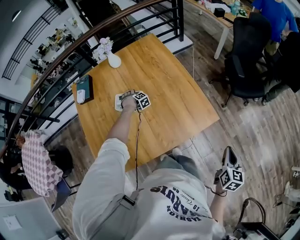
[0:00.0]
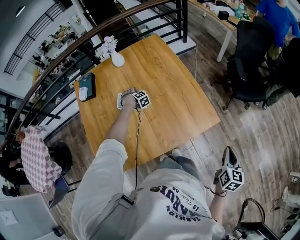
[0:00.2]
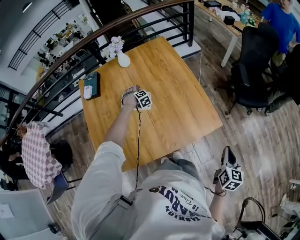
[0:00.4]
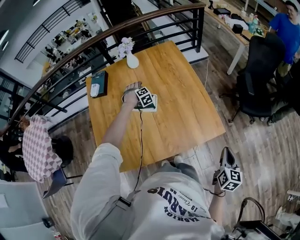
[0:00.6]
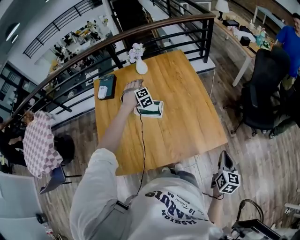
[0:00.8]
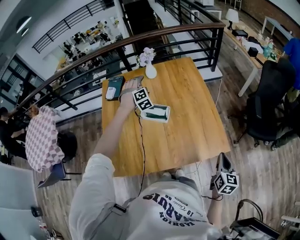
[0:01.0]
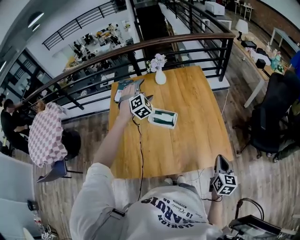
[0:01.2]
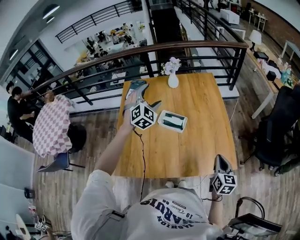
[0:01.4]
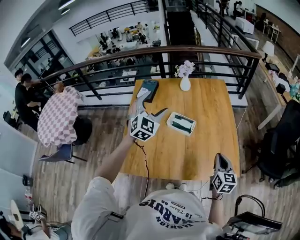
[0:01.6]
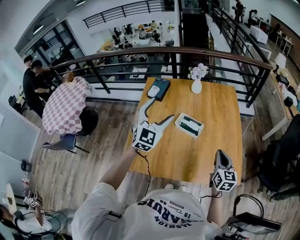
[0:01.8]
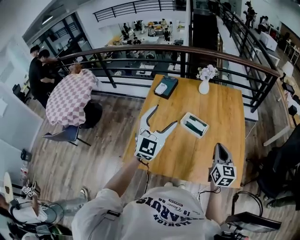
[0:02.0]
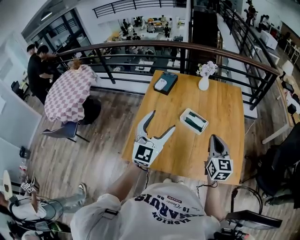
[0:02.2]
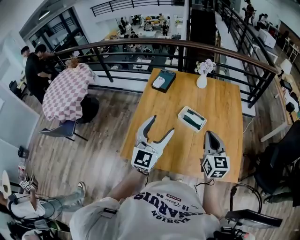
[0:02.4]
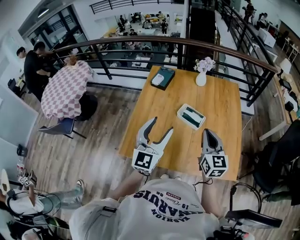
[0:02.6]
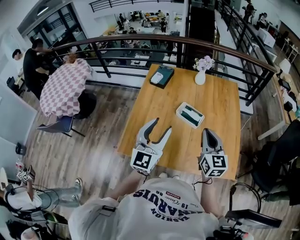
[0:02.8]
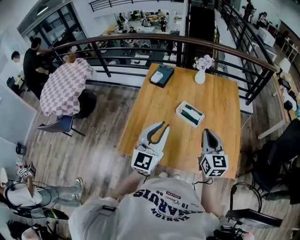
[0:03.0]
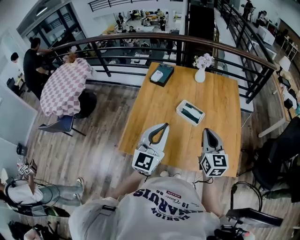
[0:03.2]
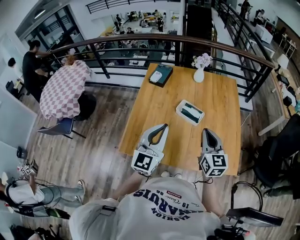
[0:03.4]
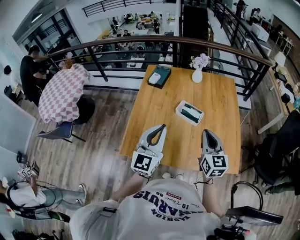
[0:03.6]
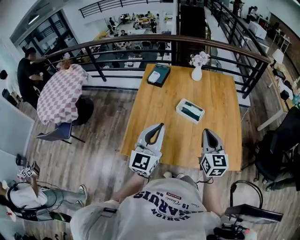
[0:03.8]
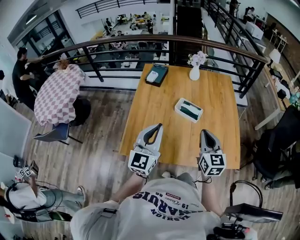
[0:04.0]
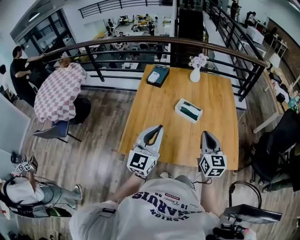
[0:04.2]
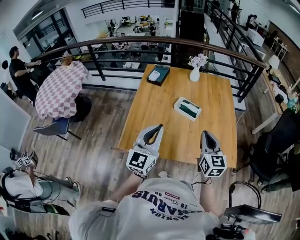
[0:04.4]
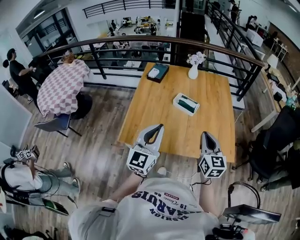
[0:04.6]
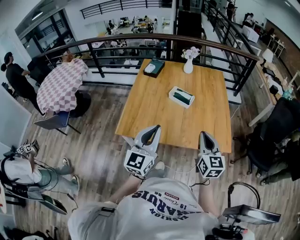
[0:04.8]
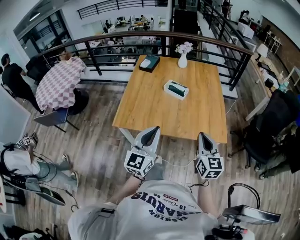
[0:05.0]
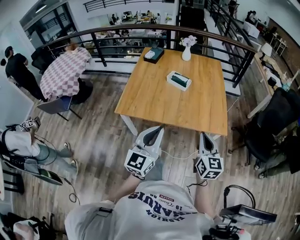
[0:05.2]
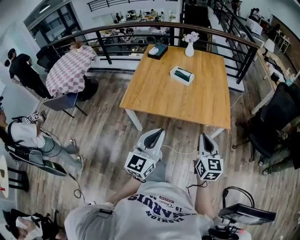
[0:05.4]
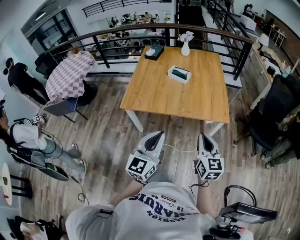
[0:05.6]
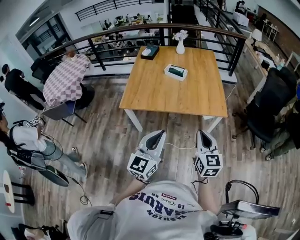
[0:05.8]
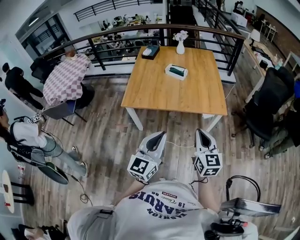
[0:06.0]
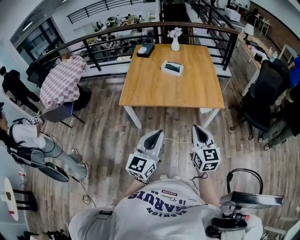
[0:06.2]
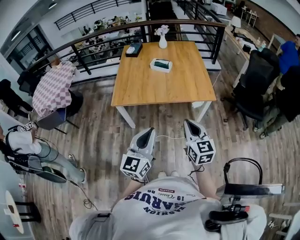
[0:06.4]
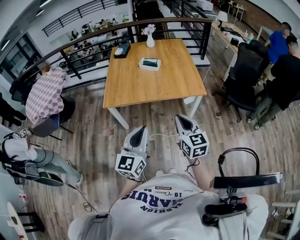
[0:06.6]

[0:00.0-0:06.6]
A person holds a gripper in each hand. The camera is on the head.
0:00.0 to 0:01.6: The left gripper shifts approximately 50 cm upward, and tilts its fingers approximately 50 degrees upward; the right gripper is displaced forward and to the left by roughly 30 cm, and swivels roughly 40 degrees.
0:01.6 to 0:03.2: The left gripper is displaced backward by approximately 20 cm, swivels roughly 40 degrees, and closes, while the right gripper shifts about 15 cm to the left and upward, and changes its angle by approximately 20 degrees.
0:03.2 to 0:05.0: The two grippers go some 30 cm backward.
0:05.0 to 0:06.6: Both grippers travel together backward, roughly 30 cm.

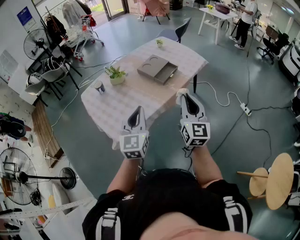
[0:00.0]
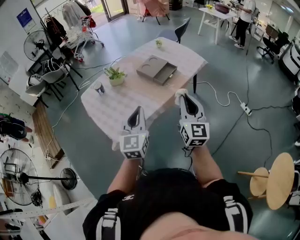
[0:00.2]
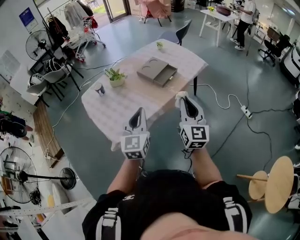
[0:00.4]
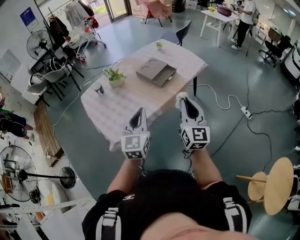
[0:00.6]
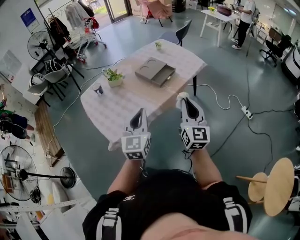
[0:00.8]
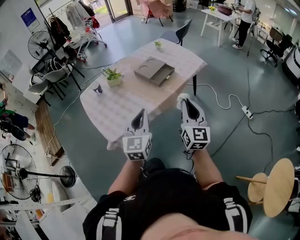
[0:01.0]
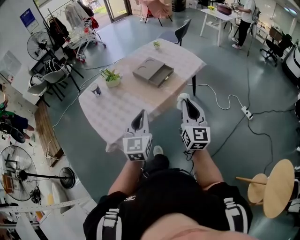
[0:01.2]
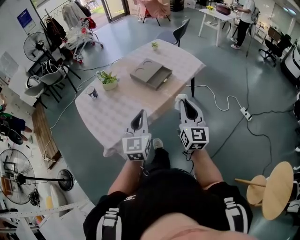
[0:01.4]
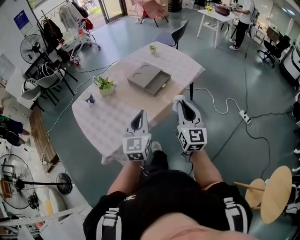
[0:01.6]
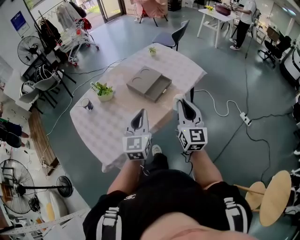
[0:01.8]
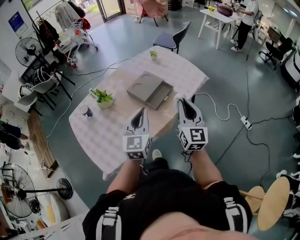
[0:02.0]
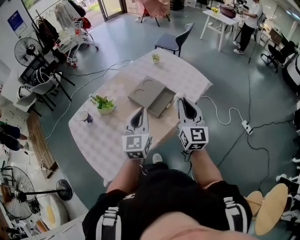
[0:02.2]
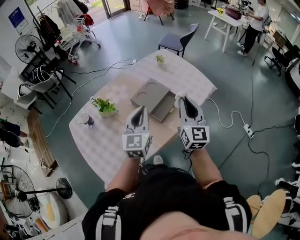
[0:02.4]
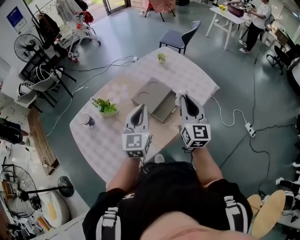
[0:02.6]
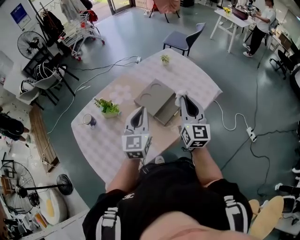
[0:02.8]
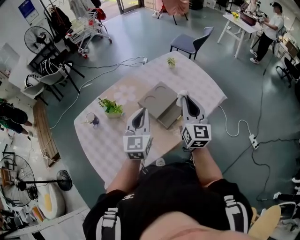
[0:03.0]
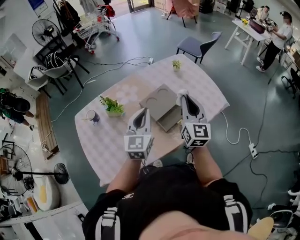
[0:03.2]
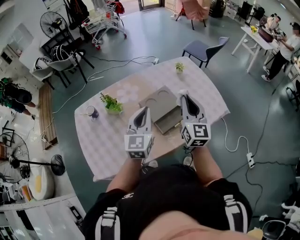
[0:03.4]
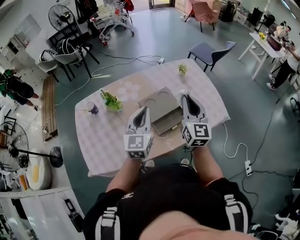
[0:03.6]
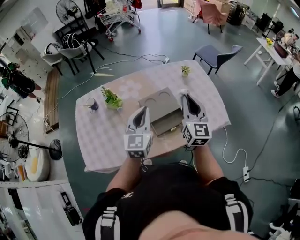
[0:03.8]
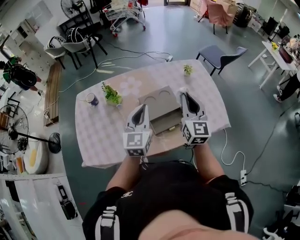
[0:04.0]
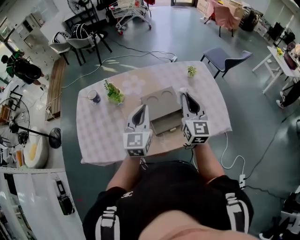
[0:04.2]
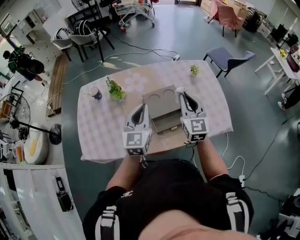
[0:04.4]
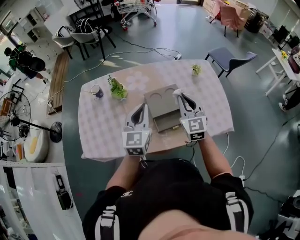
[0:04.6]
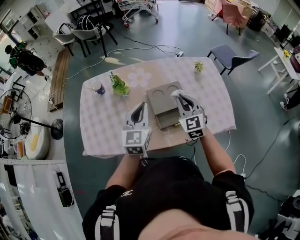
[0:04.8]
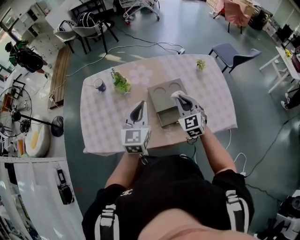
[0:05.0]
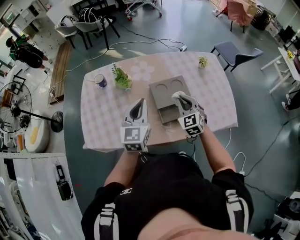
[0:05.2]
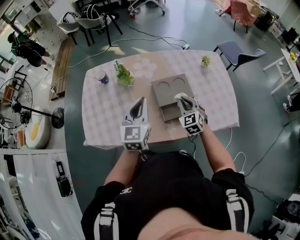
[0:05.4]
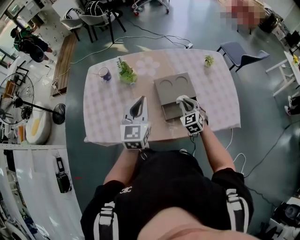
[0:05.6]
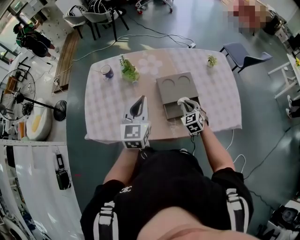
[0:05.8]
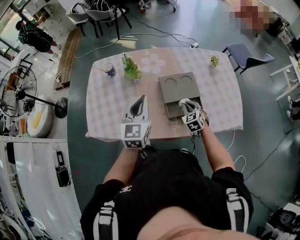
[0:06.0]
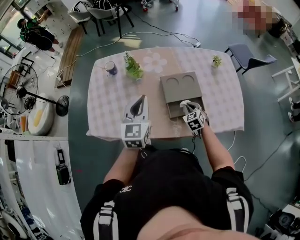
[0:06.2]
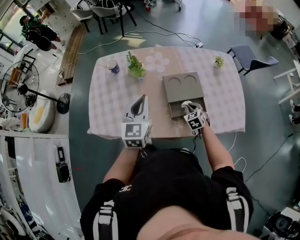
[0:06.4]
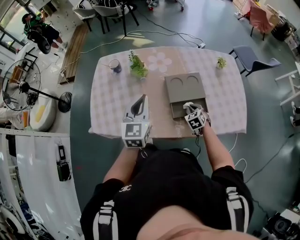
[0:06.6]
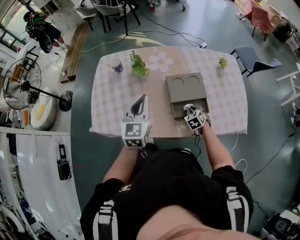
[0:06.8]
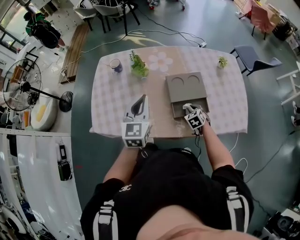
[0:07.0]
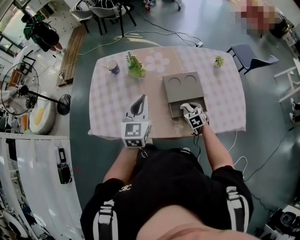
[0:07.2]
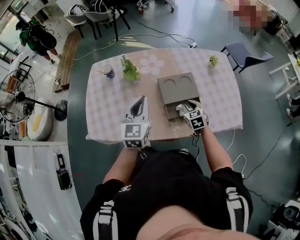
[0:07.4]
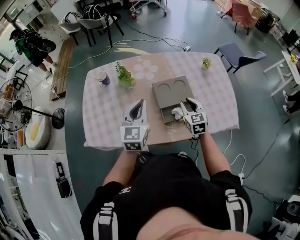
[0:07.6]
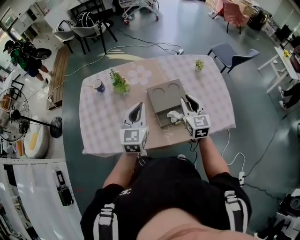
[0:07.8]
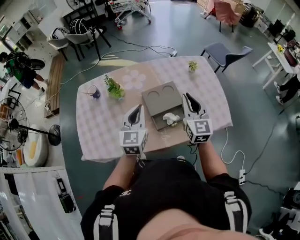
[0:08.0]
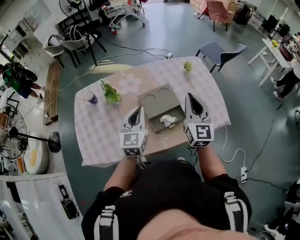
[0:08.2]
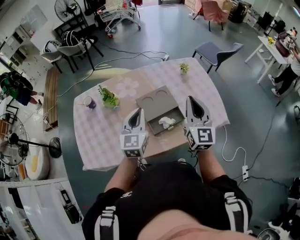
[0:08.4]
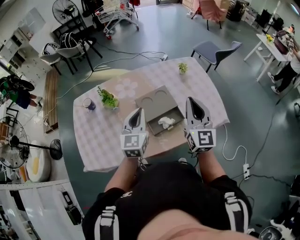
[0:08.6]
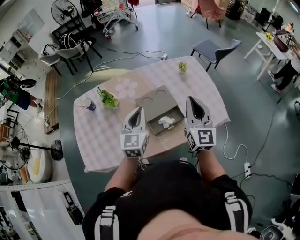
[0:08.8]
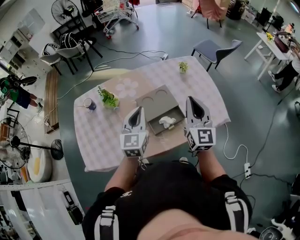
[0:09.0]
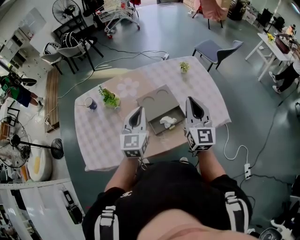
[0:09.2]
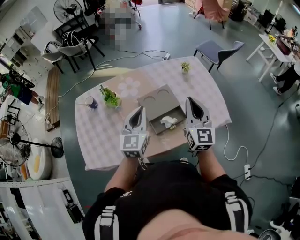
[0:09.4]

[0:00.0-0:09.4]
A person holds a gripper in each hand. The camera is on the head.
0:00.0 to 0:01.6: The two grippers go some 15 cm forward and to the right.
0:01.6 to 0:03.2: Both grippers travel together forward, some 35 cm.
0:03.2 to 0:04.8: The right gripper moves downward, some 10 cm, and swivels roughly 50 degrees. Meanwhile the left gripper rotates roughly 20 degrees.
0:04.8 to 0:06.2: The right gripper moves downward, some 20 cm, and tips its fingers downward by roughly 30 degrees. Meanwhile the left gripper travels to the left by approximately 5 cm.
0:06.2 to 0:07.8: The left gripper ends up roughly 5 cm from where it was; the right gripper heads upward, covering some 20 cm, and angles its fingers upward, by approximately 30 degrees.
0:07.8 to 0:09.4: The left gripper goes some 5 cm to the right, while the right gripper travels upward and to the right by some 10 cm, and changes its angle by approximately 20 degrees.

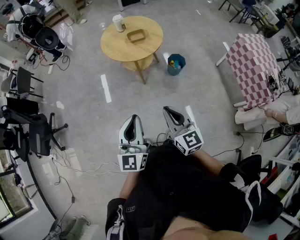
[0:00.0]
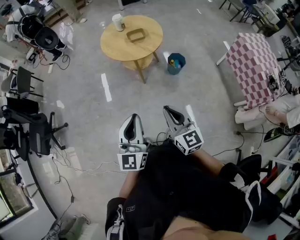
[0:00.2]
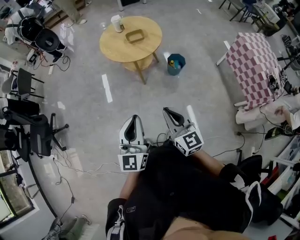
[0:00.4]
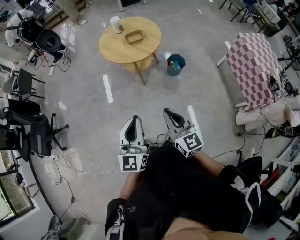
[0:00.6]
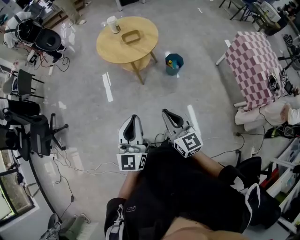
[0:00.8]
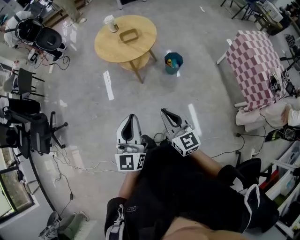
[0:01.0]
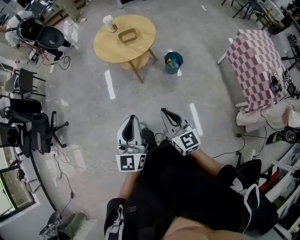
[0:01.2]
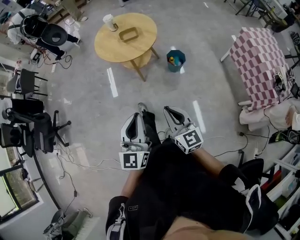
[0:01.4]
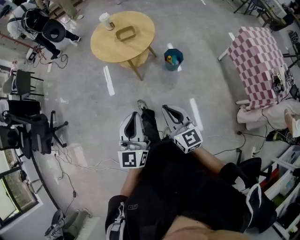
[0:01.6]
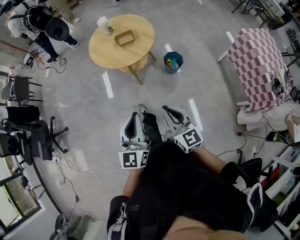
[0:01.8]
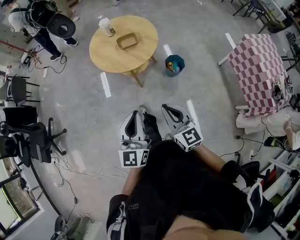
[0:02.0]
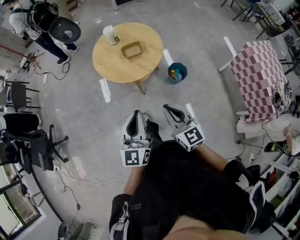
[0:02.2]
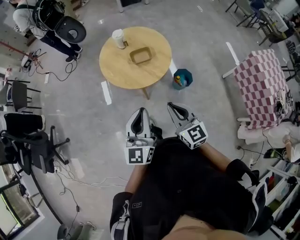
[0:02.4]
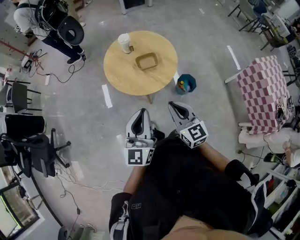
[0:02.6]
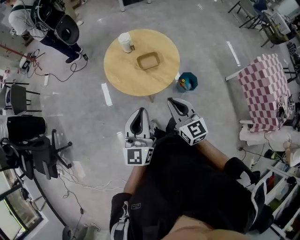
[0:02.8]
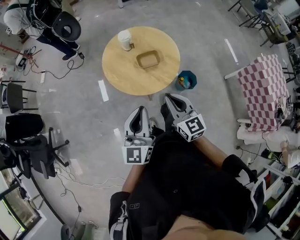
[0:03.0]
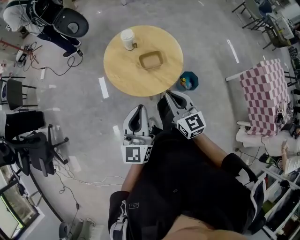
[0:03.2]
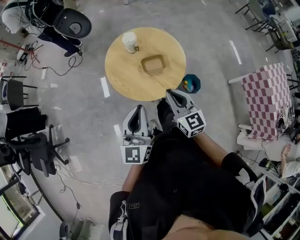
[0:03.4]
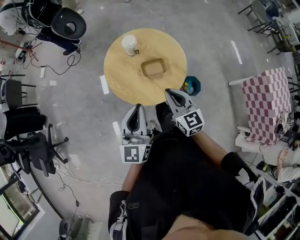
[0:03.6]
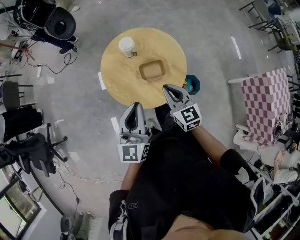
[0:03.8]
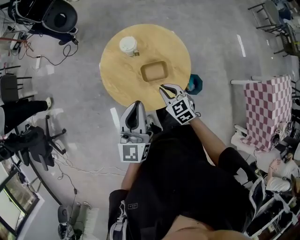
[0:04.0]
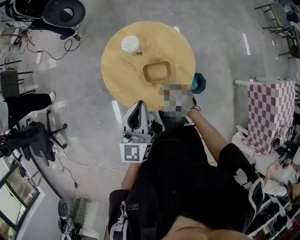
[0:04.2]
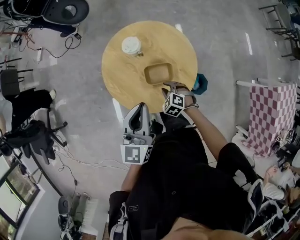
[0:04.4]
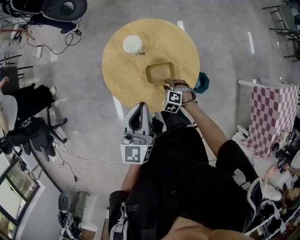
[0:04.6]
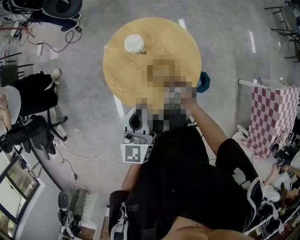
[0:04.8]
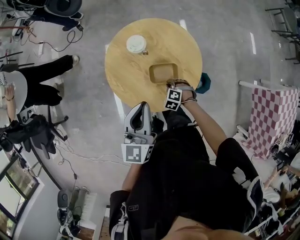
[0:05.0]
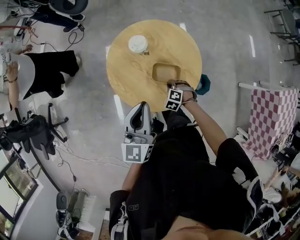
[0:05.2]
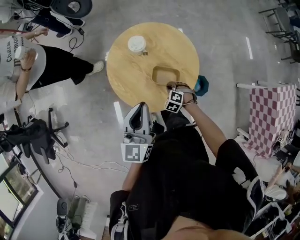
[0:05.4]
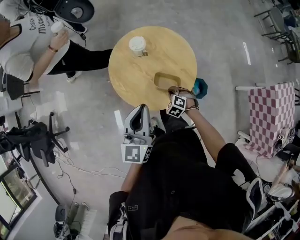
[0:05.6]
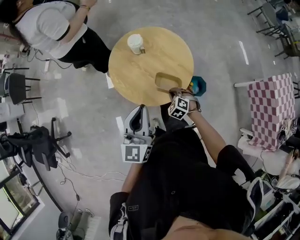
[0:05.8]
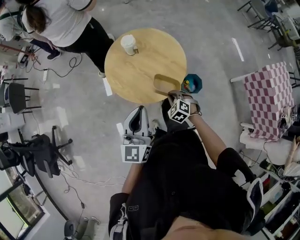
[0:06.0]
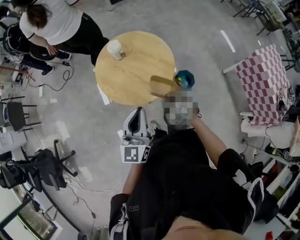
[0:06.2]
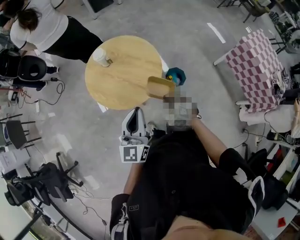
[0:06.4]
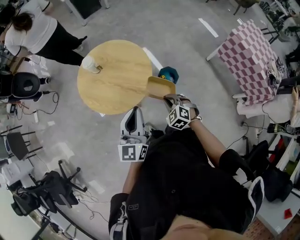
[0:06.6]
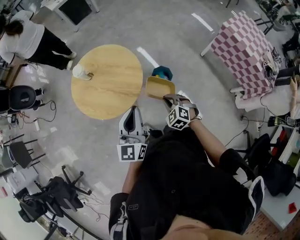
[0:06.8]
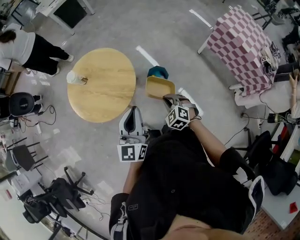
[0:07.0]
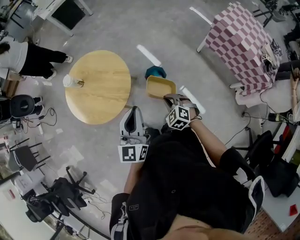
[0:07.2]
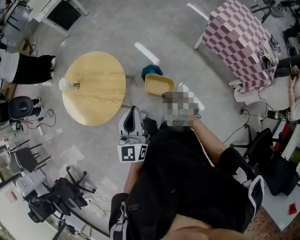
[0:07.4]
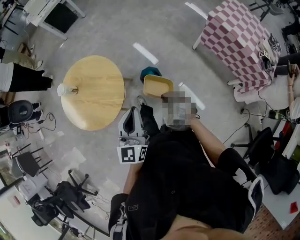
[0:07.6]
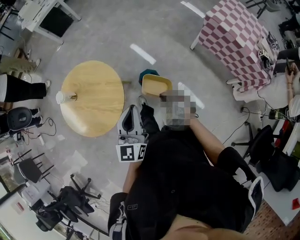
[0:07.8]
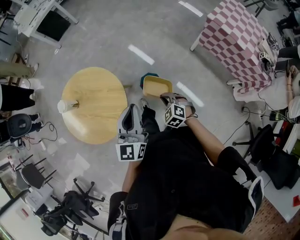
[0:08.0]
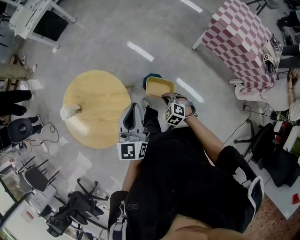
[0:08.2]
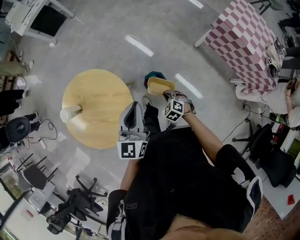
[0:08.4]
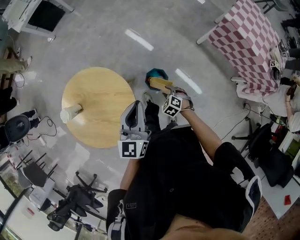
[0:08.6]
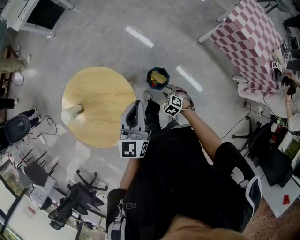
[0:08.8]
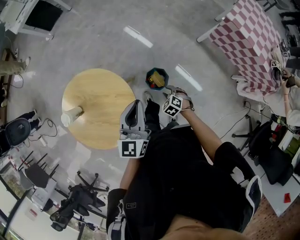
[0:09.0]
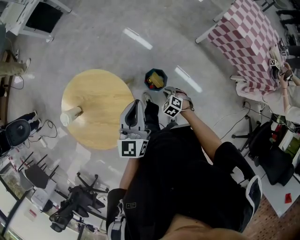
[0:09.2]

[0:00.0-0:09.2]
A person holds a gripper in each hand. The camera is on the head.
0:00.0 to 0:01.6: The left gripper travels to the right and forward by approximately 15 cm, while the right gripper travels to the right by approximately 10 cm.
0:01.6 to 0:03.0: The two grippers go about 40 cm forward.
0:03.0 to 0:04.6: The left gripper heads forward, covering some 25 cm, while the right gripper shifts approximately 40 cm downward and forward, tips its fingers downward by some 60 degrees, and opens up.
0:04.6 to 0:06.2: The left gripper changes place by roughly 20 cm. Meanwhile the right gripper moves about 25 cm, rotates approximately 30 degrees, and closes up.
0:06.2 to 0:07.6: Both grippers travel together to the right, some 30 cm.
0:07.6 to 0:09.2: The left gripper is displaced forward by some 25 cm. The right gripper shifts approximately 25 cm forward and downward, rotates roughly 20 degrees, and opens and closes again.
